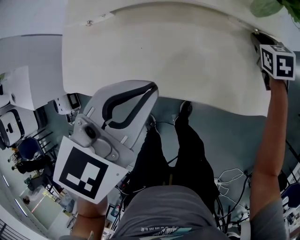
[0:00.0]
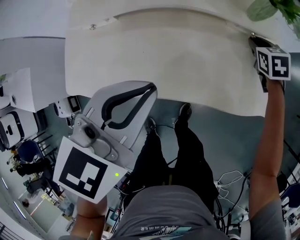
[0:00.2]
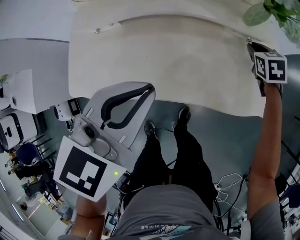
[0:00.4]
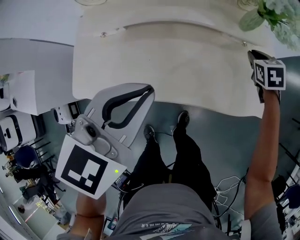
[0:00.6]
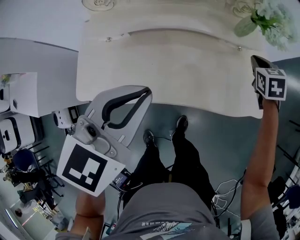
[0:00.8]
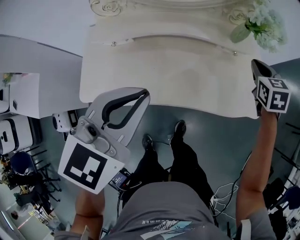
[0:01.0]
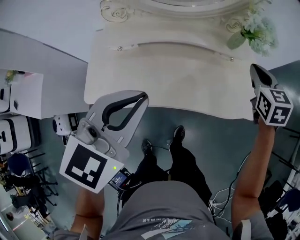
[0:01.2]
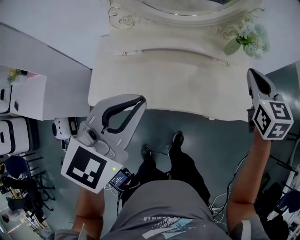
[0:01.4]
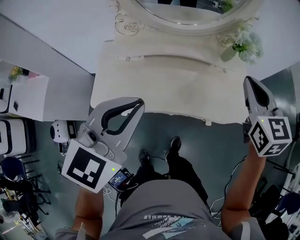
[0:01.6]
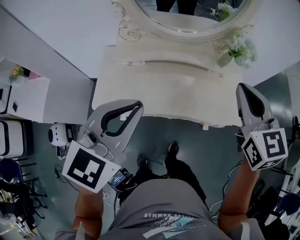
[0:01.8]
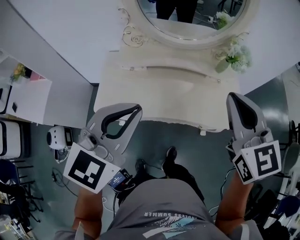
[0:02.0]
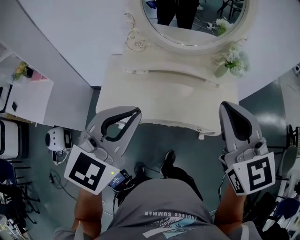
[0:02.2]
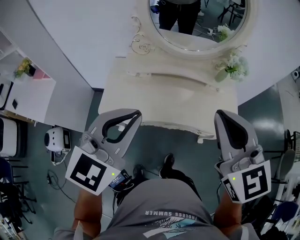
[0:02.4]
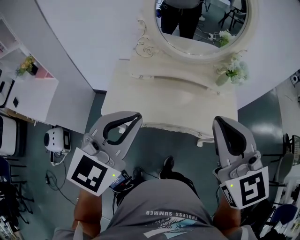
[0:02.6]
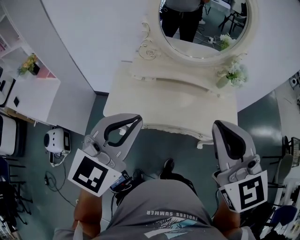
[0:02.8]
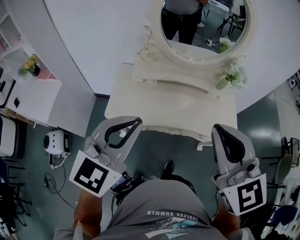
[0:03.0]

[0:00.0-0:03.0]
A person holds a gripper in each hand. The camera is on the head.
0:00.0 to 0:01.6: The right gripper shifts about 40 cm upward and backward, and tilts its fingers about 30 degrees upward. Meanwhile the left gripper travels upward and backward by some 25 cm.
0:01.6 to 0:03.0: The right gripper travels backward, to the left and upward by approximately 35 cm, and swivels roughly 20 degrees, while the left gripper heads backward, to the left and upward, covering roughly 20 cm.

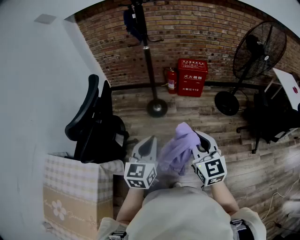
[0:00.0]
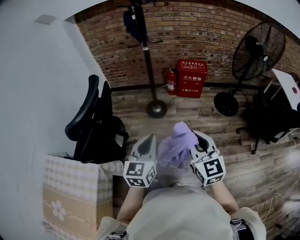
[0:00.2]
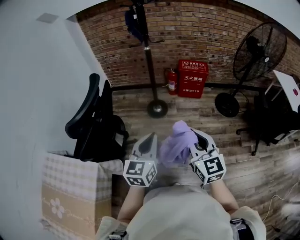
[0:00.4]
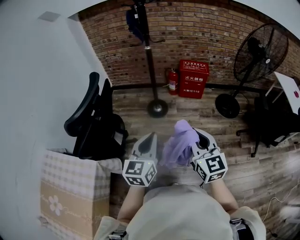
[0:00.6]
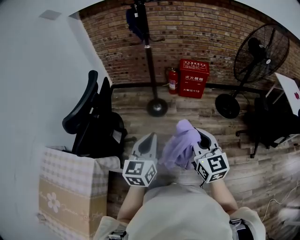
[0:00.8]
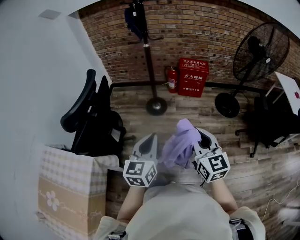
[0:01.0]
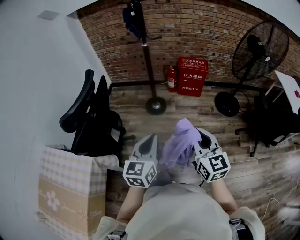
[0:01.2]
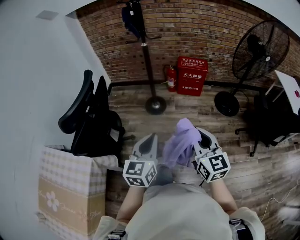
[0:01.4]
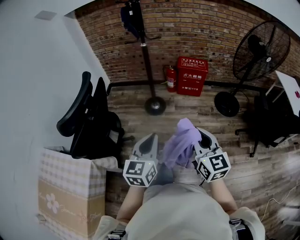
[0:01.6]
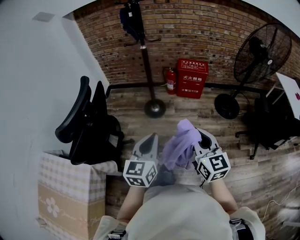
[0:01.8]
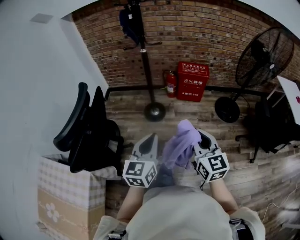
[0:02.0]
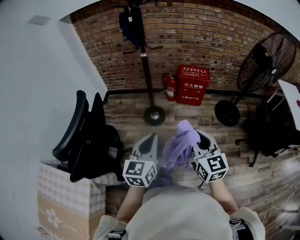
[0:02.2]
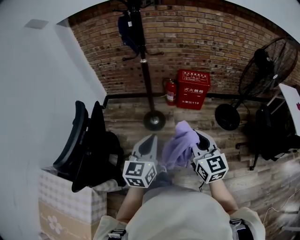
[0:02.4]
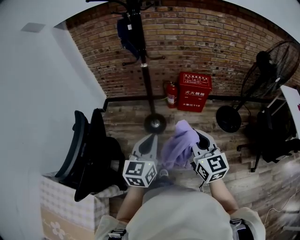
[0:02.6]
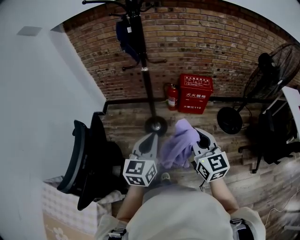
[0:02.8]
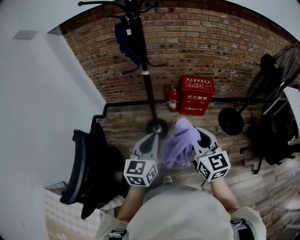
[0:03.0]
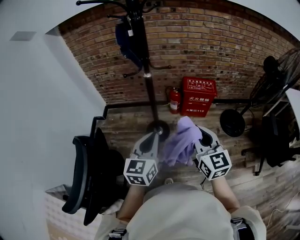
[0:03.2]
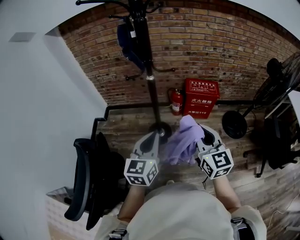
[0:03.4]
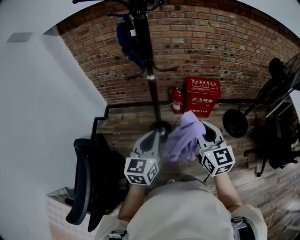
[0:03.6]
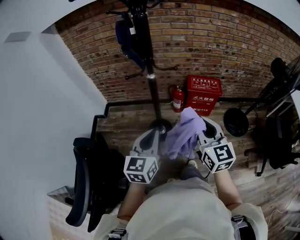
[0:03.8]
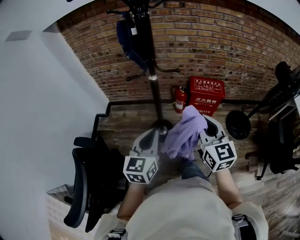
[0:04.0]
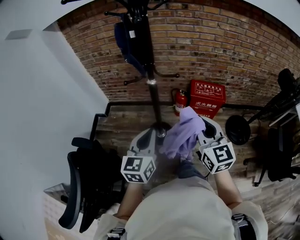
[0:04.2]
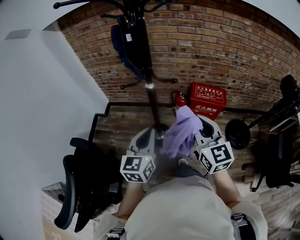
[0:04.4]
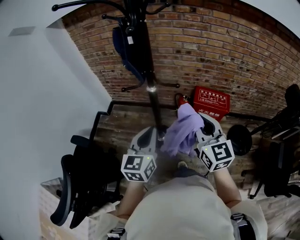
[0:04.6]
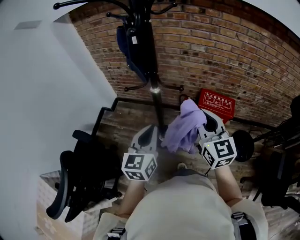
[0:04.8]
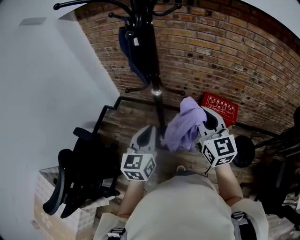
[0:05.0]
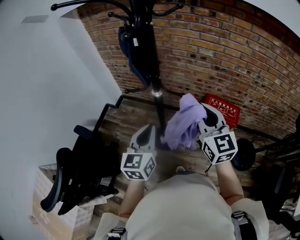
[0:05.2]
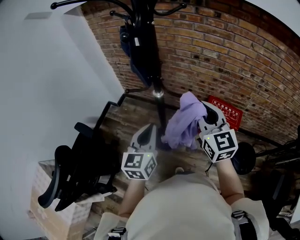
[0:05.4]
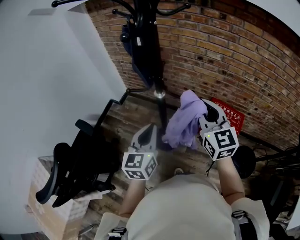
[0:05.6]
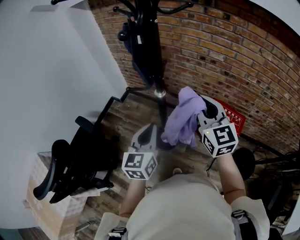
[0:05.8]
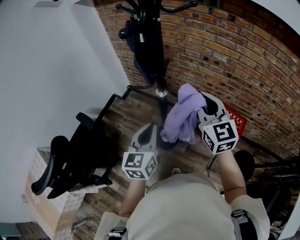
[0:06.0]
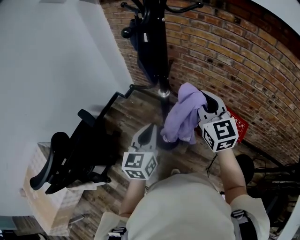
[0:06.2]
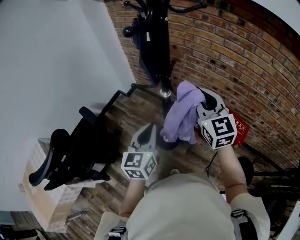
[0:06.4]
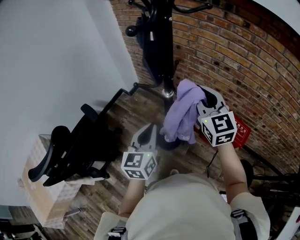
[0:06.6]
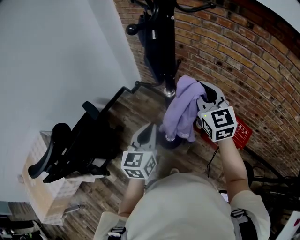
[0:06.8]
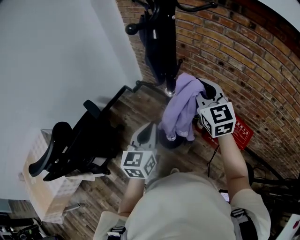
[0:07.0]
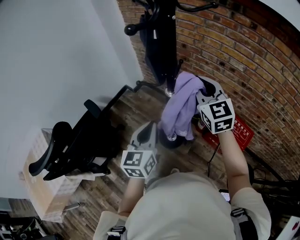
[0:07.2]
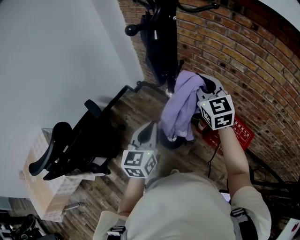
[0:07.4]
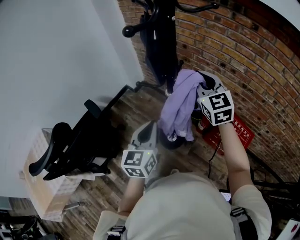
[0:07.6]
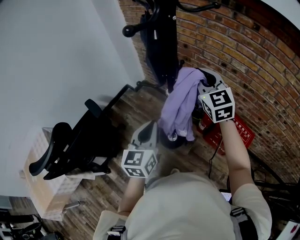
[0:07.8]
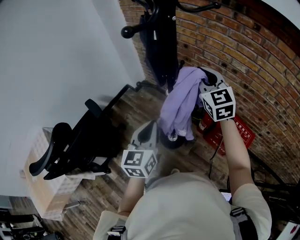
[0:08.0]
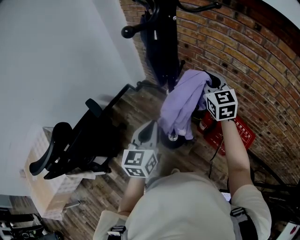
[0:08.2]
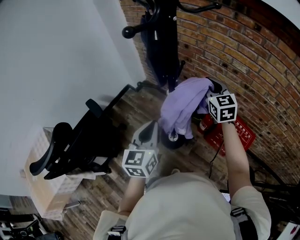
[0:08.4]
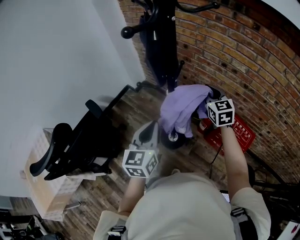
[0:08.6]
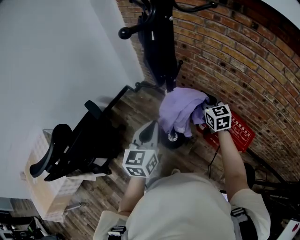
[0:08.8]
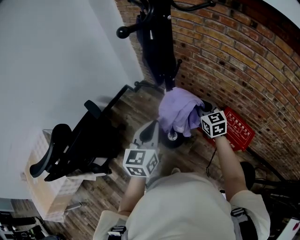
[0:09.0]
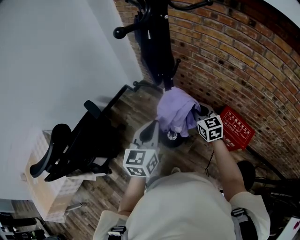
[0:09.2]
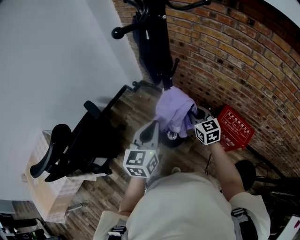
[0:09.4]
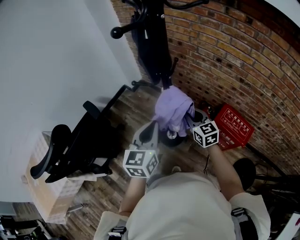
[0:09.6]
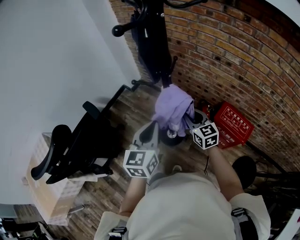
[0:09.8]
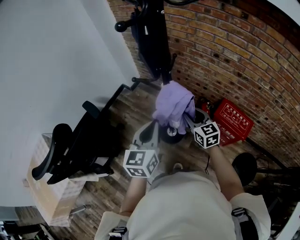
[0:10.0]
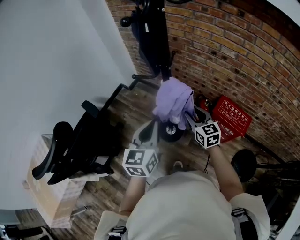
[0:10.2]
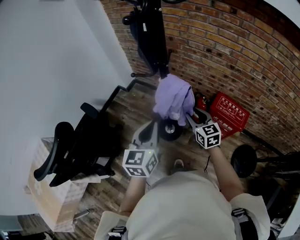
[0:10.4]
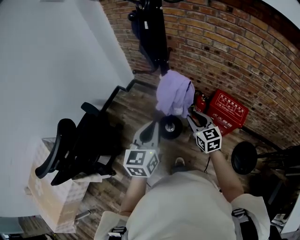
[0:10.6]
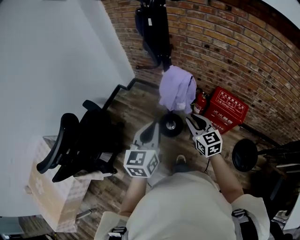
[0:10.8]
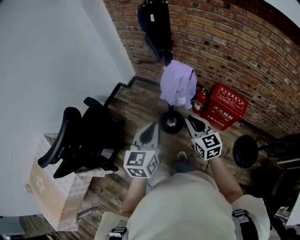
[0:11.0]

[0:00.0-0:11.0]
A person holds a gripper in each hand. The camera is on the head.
0:00.0 to 0:01.6: Both grippers move to the right, about 5 cm.
0:01.6 to 0:03.2: The grippers both shift forward by some 30 cm.
0:03.2 to 0:04.8: The grippers both shift forward by about 20 cm.
0:04.8 to 0:06.2: The right gripper moves forward, approximately 15 cm, while the left gripper changes place by roughly 5 cm.
0:06.2 to 0:07.8: The right gripper moves forward, about 10 cm.
0:07.8 to 0:09.4: The right gripper travels downward by about 20 cm, and turns by roughly 20 degrees.
0:09.4 to 0:11.0: The right gripper heads backward, covering approximately 20 cm, and opens, then closes once more, while the left gripper heads backward and to the left, covering approximately 15 cm.

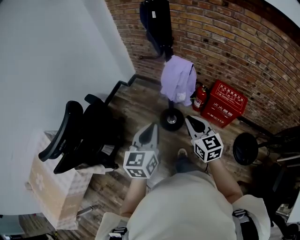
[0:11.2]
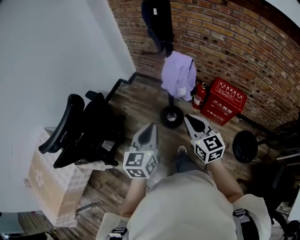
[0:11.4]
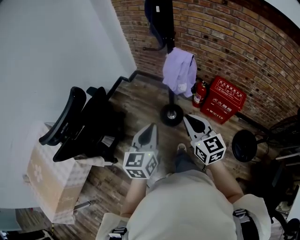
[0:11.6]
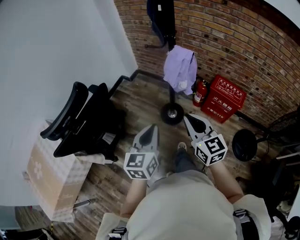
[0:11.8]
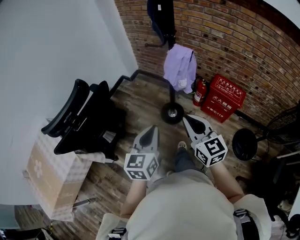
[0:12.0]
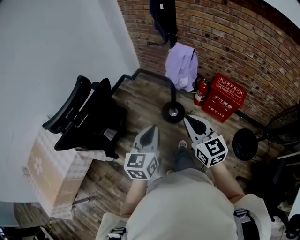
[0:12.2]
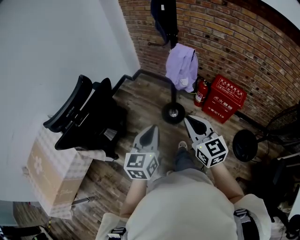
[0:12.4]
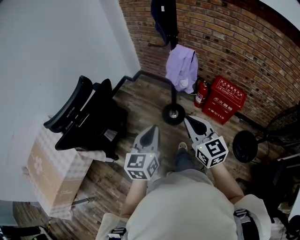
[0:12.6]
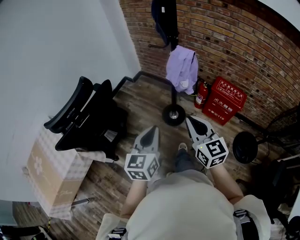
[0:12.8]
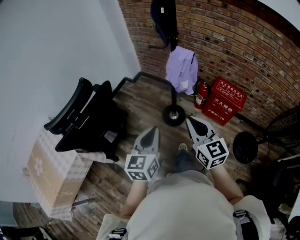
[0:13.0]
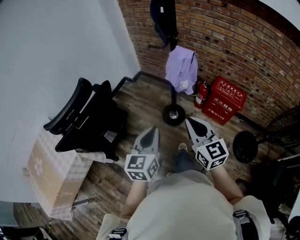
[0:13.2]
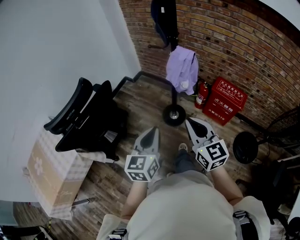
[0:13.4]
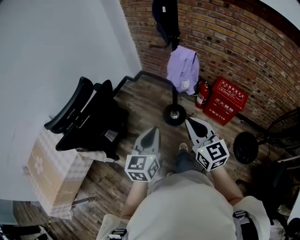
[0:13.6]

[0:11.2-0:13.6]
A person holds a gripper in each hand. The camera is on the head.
0:11.2 to 0:12.4: The grippers both shift backward by roughly 15 cm.
0:12.4 to 0:13.6: Neither gripper changes place.

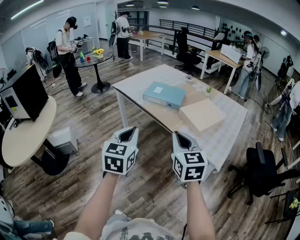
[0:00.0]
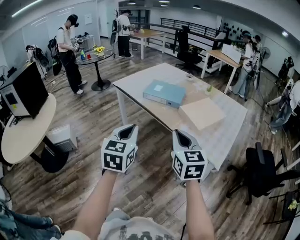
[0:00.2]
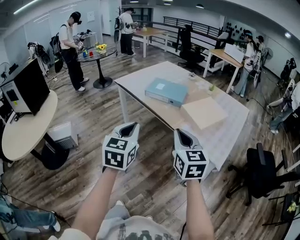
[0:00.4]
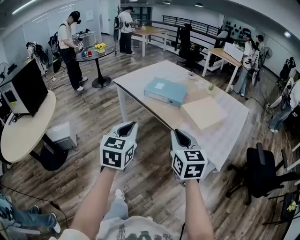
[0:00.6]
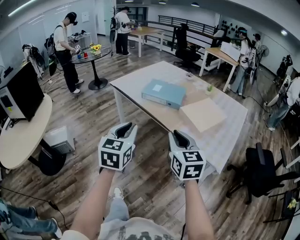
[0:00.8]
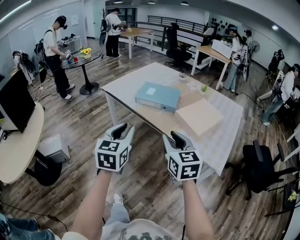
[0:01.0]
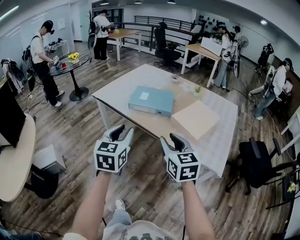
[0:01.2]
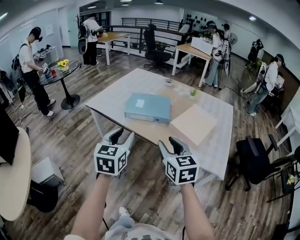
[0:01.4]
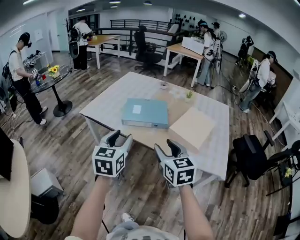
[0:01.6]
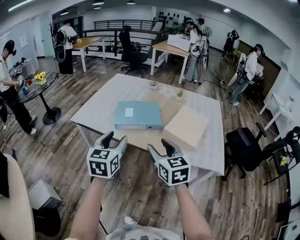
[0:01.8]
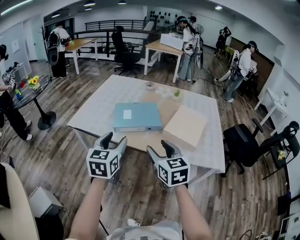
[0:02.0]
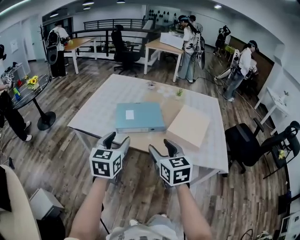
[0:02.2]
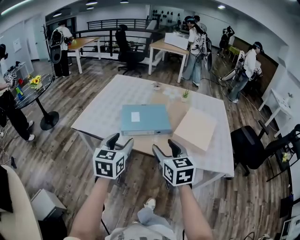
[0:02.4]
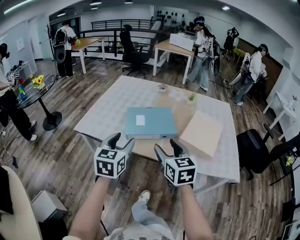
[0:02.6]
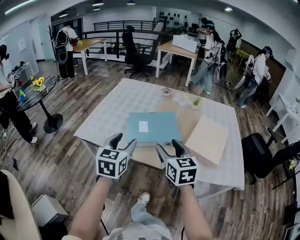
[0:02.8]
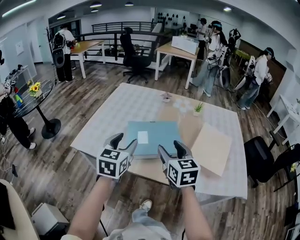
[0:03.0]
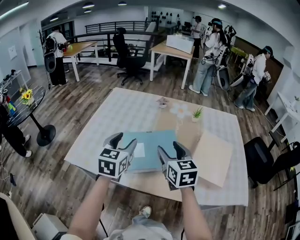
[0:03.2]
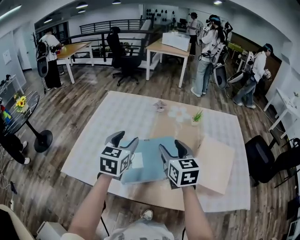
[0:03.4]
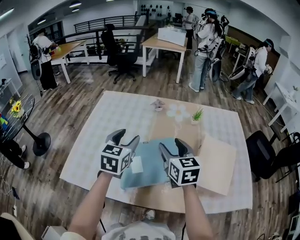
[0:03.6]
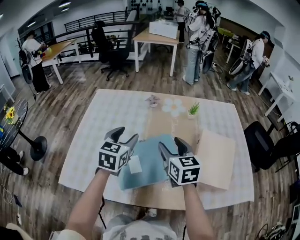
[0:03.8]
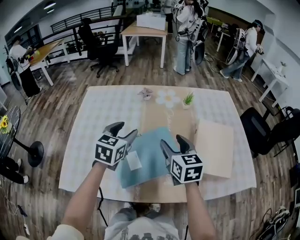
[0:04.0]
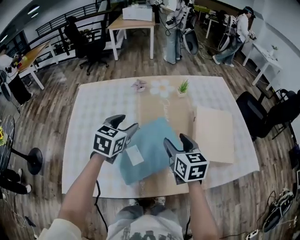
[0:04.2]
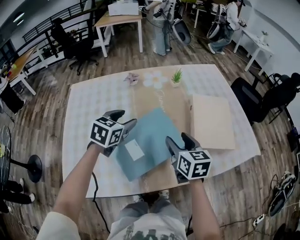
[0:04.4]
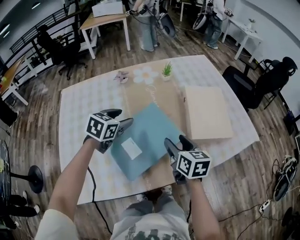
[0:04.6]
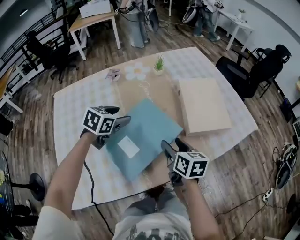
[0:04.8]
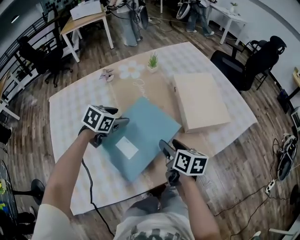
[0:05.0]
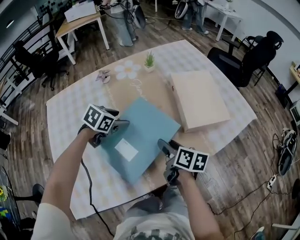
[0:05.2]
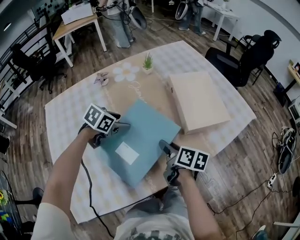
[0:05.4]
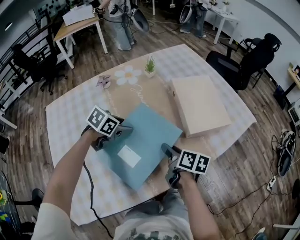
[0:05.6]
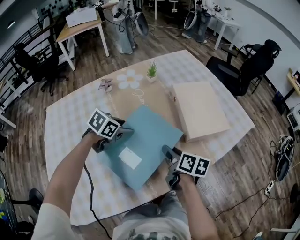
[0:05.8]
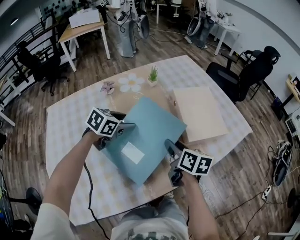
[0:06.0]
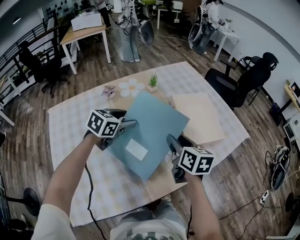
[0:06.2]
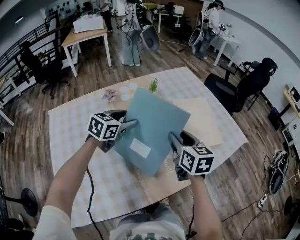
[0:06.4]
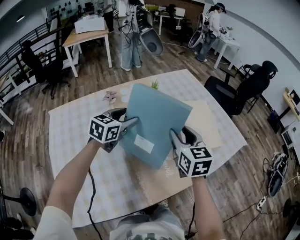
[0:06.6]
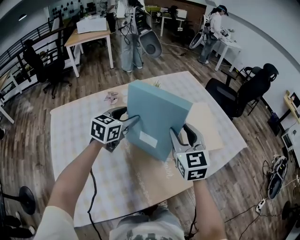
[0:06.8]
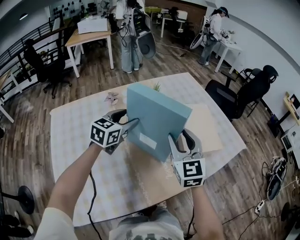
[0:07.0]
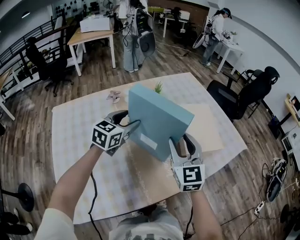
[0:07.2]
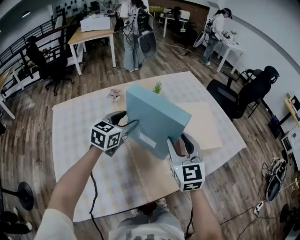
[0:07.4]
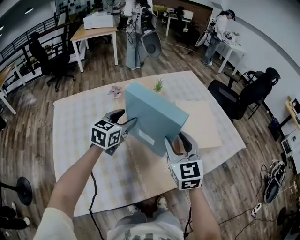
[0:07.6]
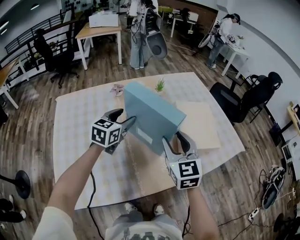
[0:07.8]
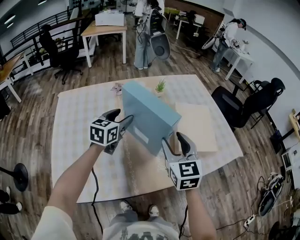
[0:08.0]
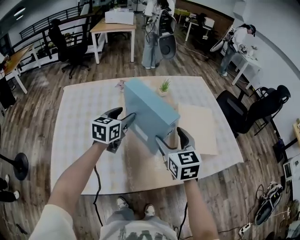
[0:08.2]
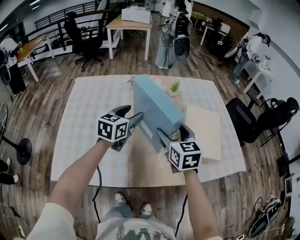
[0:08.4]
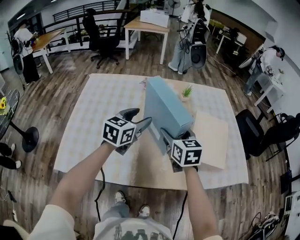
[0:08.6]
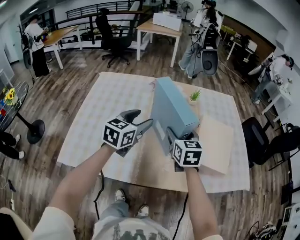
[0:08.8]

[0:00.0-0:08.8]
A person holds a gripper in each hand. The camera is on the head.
0:00.0 to 0:01.4: The grippers both shift forward by approximately 20 cm. The left gripper opens up; the right gripper opens.
0:01.4 to 0:03.0: Both grippers move forward, approximately 30 cm.
0:03.0 to 0:04.4: The left gripper changes place by about 25 cm, and turns by some 40 degrees. The right gripper shifts by some 15 cm, and swivels some 30 degrees.
0:04.4 to 0:05.8: Both grippers travel together downward, roughly 10 cm. The right gripper swivels some 40 degrees; the left gripper turns by roughly 40 degrees.
0:05.8 to 0:07.4: Both grippers travel together upward, about 15 cm. The left gripper turns by some 40 degrees. The right gripper rolls counterclockwise, seen from behind, by about 60 degrees.
0:07.4 to 0:08.8: The left gripper shifts by approximately 10 cm, and turns by about 30 degrees; the right gripper moves approximately 5 cm, and turns by roughly 30 degrees.
